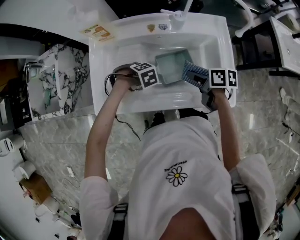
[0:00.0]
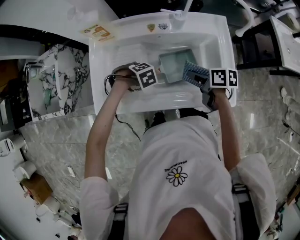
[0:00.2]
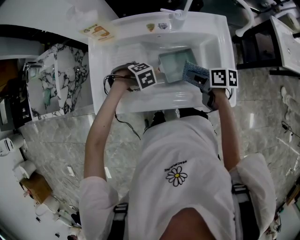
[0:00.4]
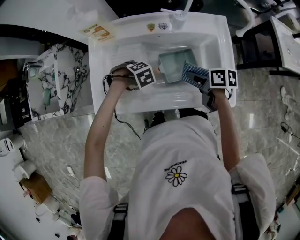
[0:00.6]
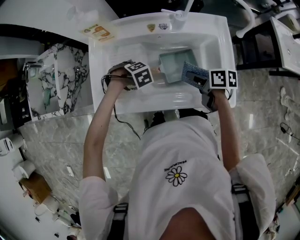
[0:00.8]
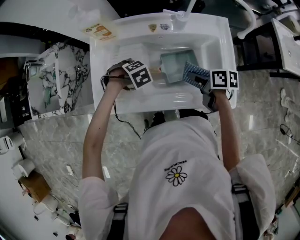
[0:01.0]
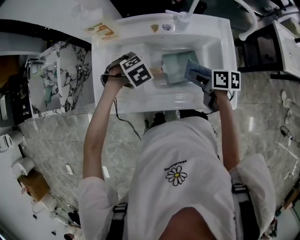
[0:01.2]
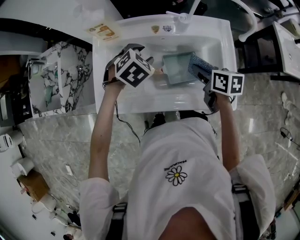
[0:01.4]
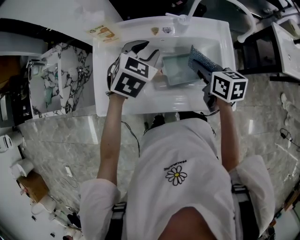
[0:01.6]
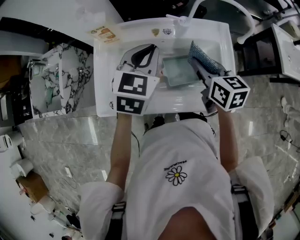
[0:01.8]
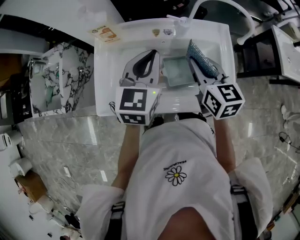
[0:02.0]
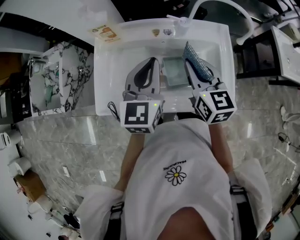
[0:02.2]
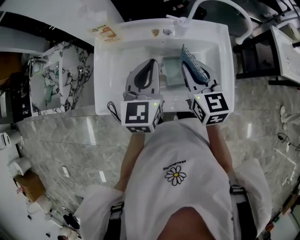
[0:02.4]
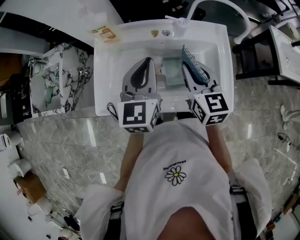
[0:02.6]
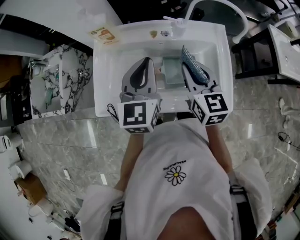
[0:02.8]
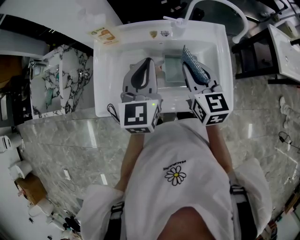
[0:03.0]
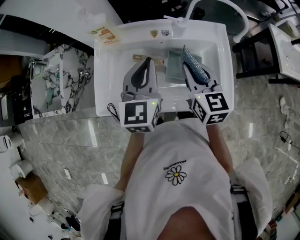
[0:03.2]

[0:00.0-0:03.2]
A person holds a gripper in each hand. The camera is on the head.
0:00.0 to 0:01.6: The right gripper travels upward by about 10 cm, and rotates approximately 30 degrees.
0:01.6 to 0:03.2: The right gripper heads upward, covering approximately 5 cm, and turns by about 30 degrees.

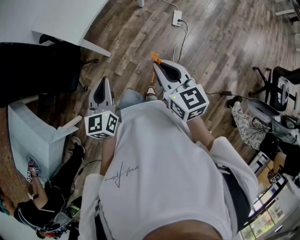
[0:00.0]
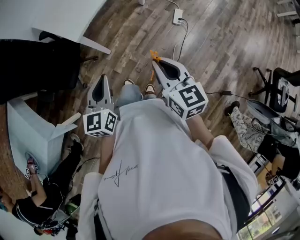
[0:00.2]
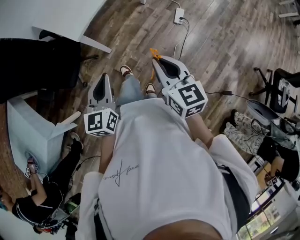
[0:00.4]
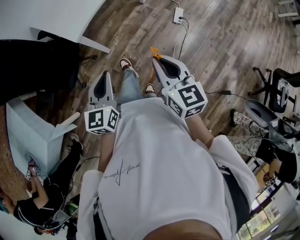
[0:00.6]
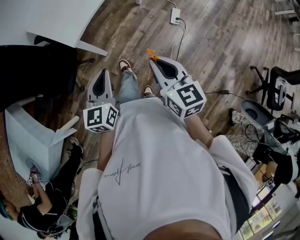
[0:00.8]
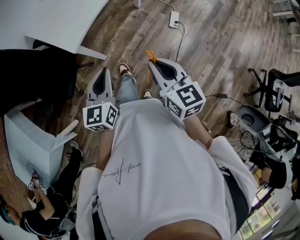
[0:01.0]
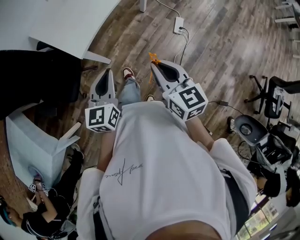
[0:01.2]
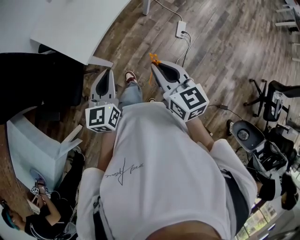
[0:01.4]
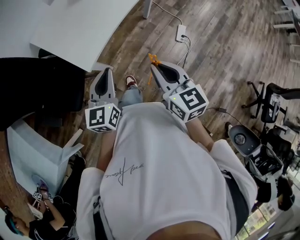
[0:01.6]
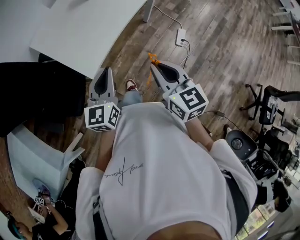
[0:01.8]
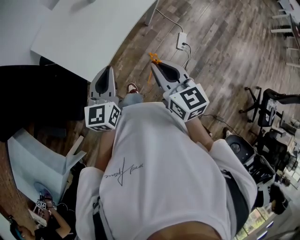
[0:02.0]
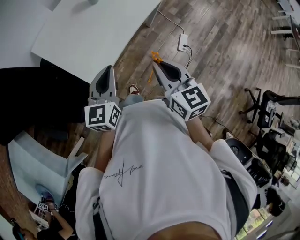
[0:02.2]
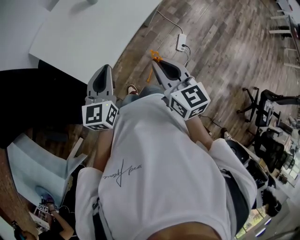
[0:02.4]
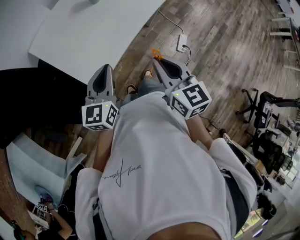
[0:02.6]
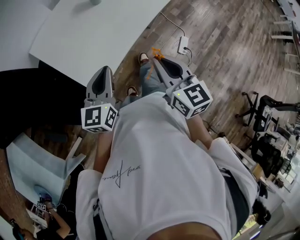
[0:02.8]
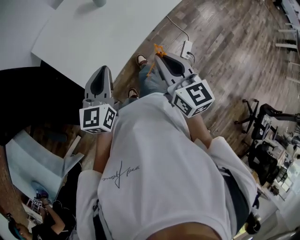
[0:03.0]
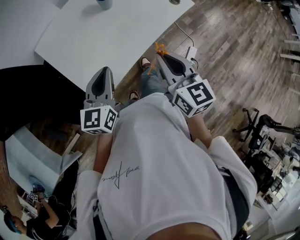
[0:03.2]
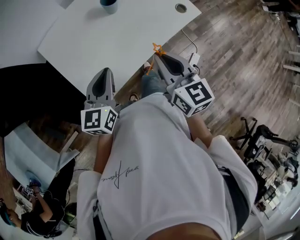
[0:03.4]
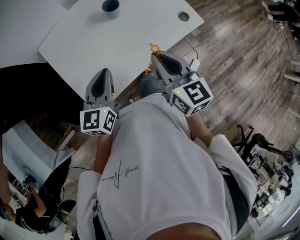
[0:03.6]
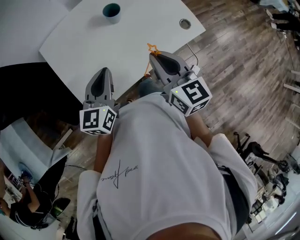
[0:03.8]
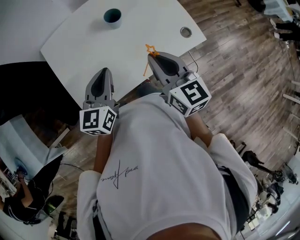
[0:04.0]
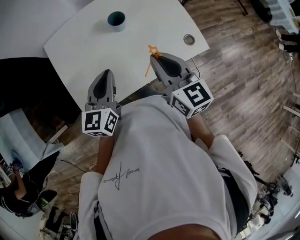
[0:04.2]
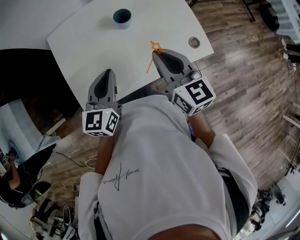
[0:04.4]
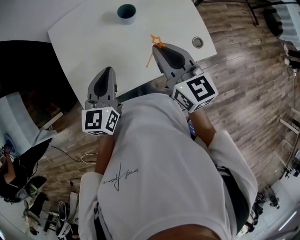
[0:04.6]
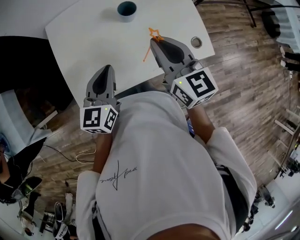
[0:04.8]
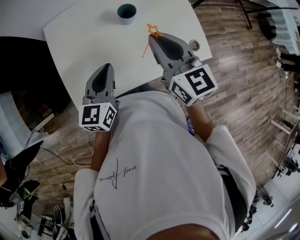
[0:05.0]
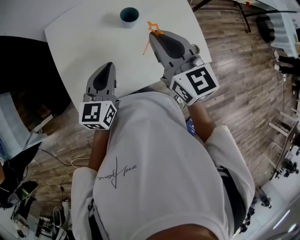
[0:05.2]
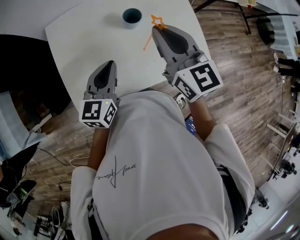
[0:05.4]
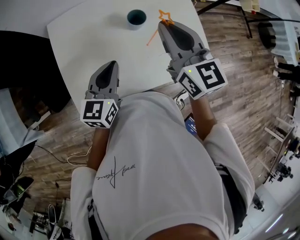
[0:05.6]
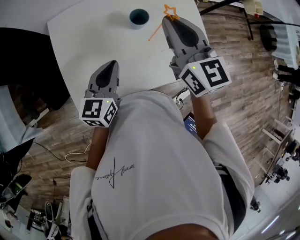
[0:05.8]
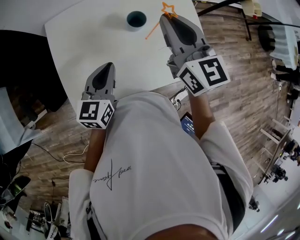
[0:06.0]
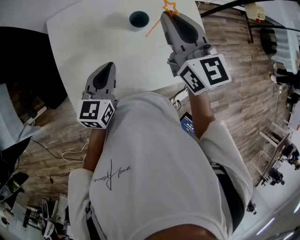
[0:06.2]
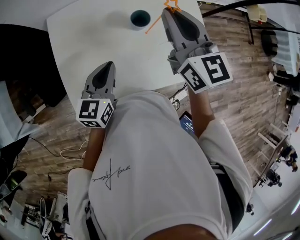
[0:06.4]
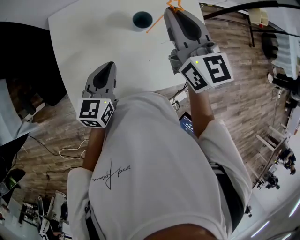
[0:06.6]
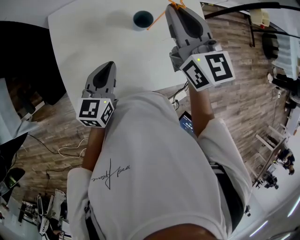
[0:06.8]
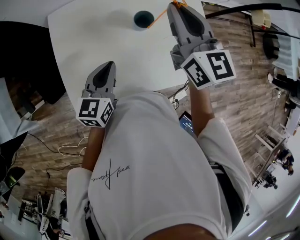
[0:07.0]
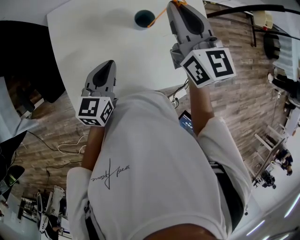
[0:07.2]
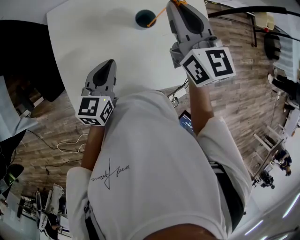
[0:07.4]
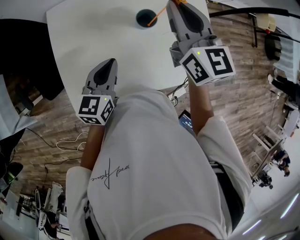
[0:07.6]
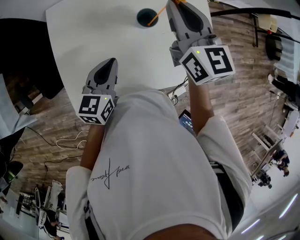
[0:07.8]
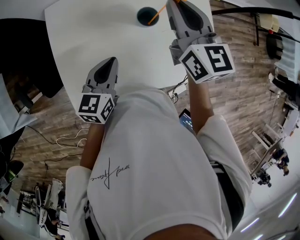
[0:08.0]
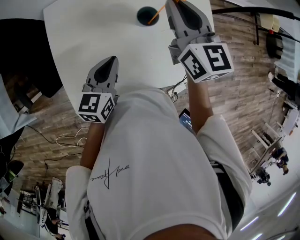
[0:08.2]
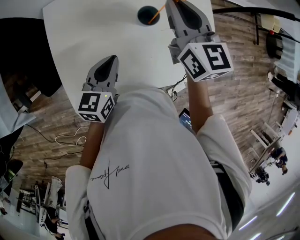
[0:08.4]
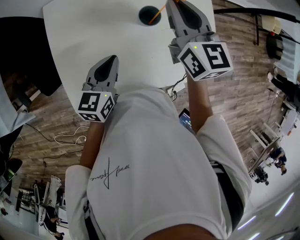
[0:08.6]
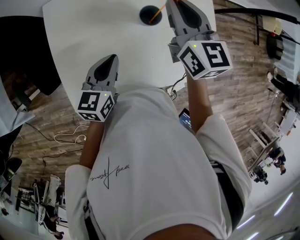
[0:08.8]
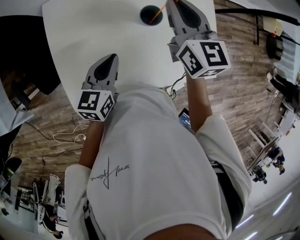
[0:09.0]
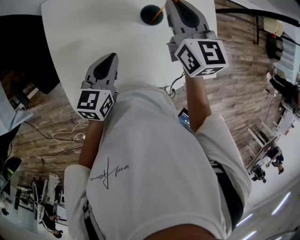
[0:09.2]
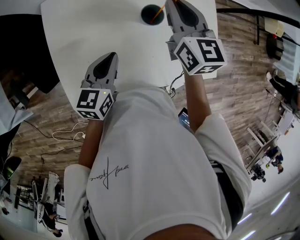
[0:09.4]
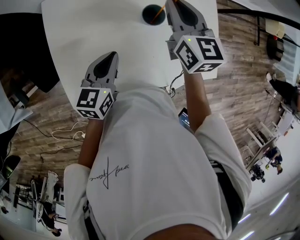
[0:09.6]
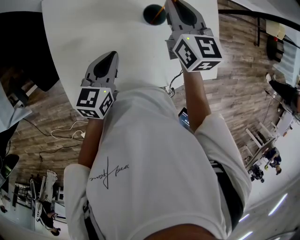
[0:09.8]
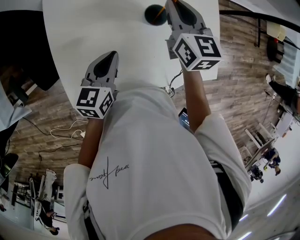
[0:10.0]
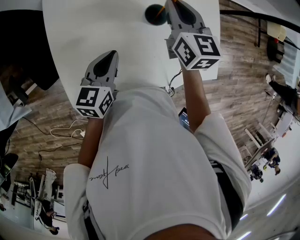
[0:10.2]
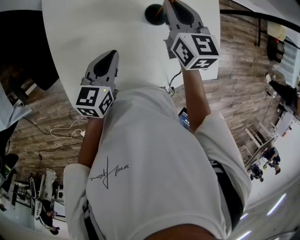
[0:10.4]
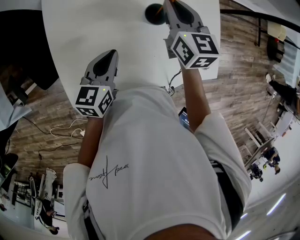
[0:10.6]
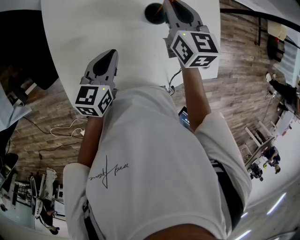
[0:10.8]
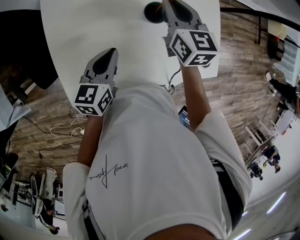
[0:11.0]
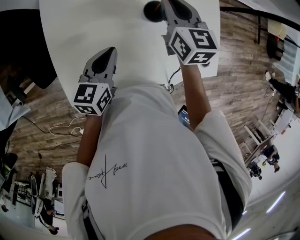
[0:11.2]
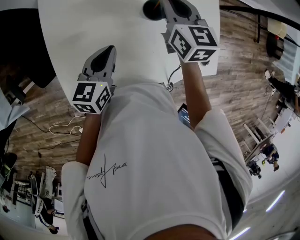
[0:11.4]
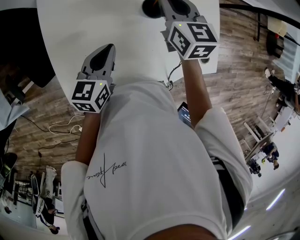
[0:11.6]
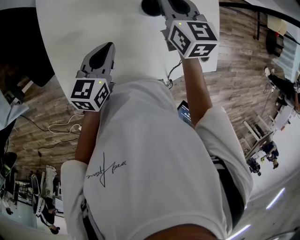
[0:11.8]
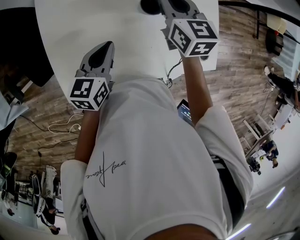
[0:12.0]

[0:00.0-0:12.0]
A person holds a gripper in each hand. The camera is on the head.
0:00.0 to 0:01.6: The grippers both shift forward by some 25 cm.
0:01.6 to 0:03.0: The two grippers go about 20 cm forward.
0:03.0 to 0:04.4: The right gripper changes place by some 25 cm, and turns by roughly 30 degrees. The left gripper changes place by about 15 cm, and rotates about 20 degrees.
0:04.4 to 0:06.0: The right gripper moves forward and upward, approximately 15 cm. Meanwhile the left gripper heads forward, covering some 5 cm.
0:06.0 to 0:07.6: The right gripper moves forward, approximately 5 cm.
0:07.6 to 0:09.0: The right gripper shifts about 5 cm downward.
0:09.0 to 0:10.4: The right gripper heads downward, covering some 5 cm.
0:10.4 to 0:12.0: There are only small adjustments of the grippers.

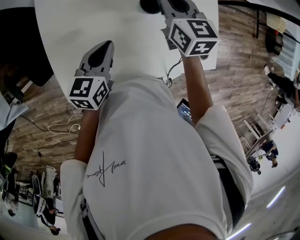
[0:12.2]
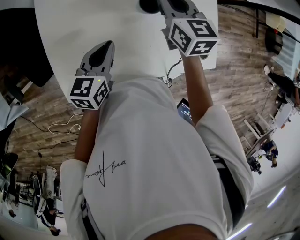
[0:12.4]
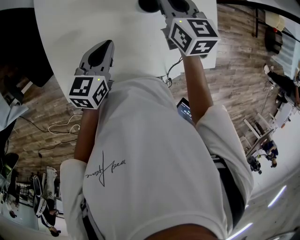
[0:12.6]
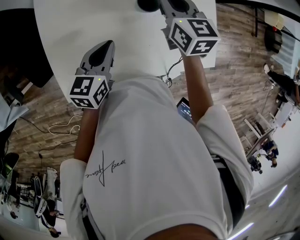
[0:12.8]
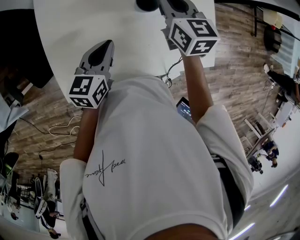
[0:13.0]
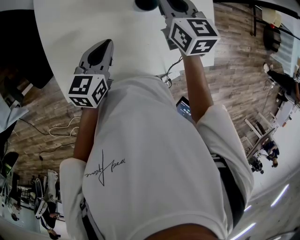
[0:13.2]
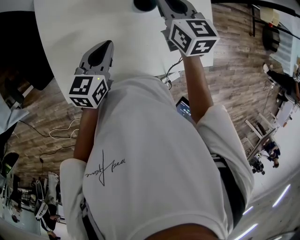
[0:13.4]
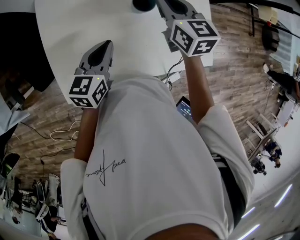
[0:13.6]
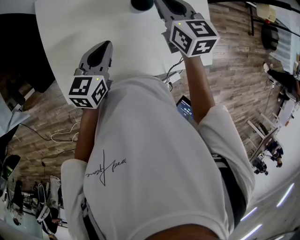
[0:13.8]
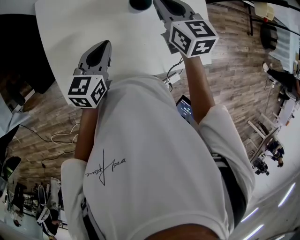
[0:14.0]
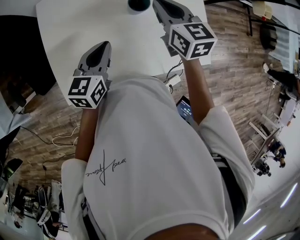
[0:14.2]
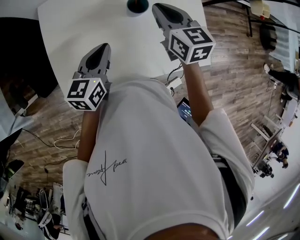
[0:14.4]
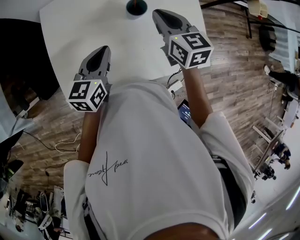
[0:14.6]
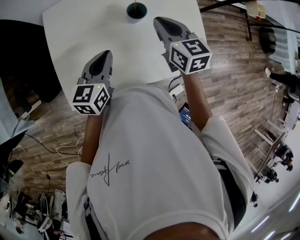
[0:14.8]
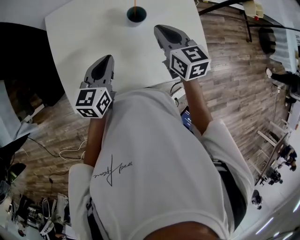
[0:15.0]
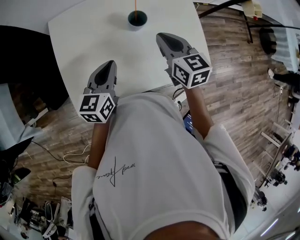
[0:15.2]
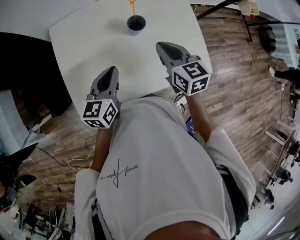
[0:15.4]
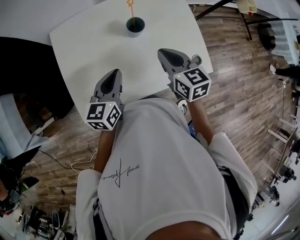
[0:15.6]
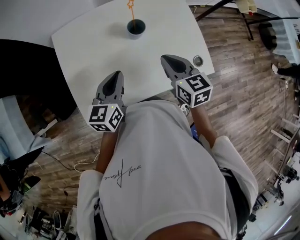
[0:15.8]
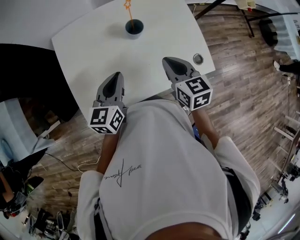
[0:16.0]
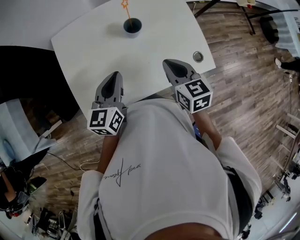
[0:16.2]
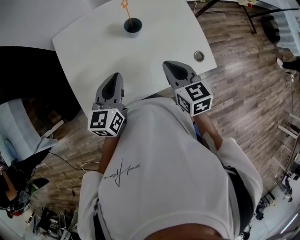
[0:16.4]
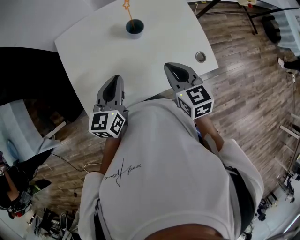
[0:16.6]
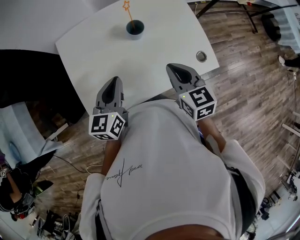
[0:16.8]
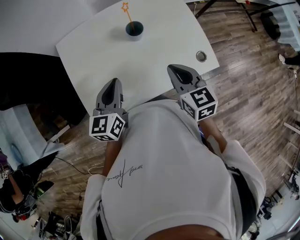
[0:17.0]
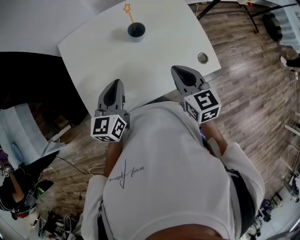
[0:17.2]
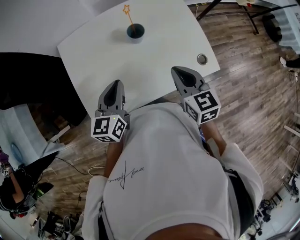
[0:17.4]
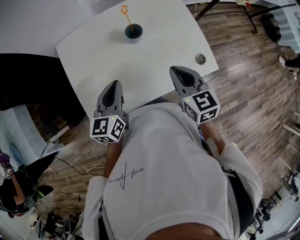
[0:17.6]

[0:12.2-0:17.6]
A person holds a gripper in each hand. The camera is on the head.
0:12.2 to 0:13.6: The grippers stay close to where they were, moving slightly.
0:13.6 to 0:15.0: The right gripper heads backward, covering some 10 cm.
0:15.0 to 0:16.2: The right gripper goes about 10 cm backward.
0:16.2 to 0:17.6: The grippers move only a little.

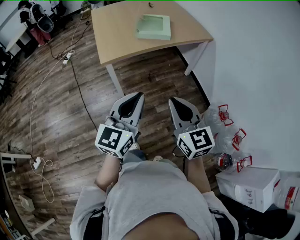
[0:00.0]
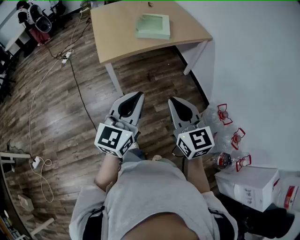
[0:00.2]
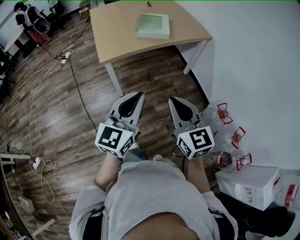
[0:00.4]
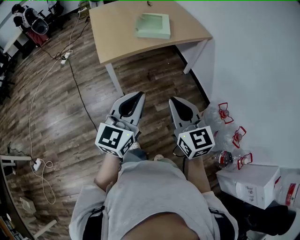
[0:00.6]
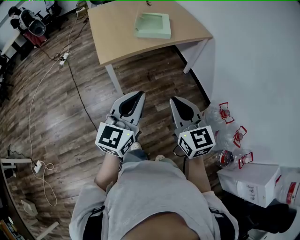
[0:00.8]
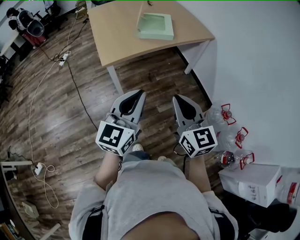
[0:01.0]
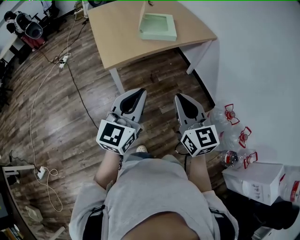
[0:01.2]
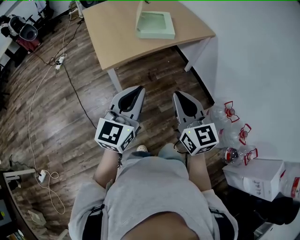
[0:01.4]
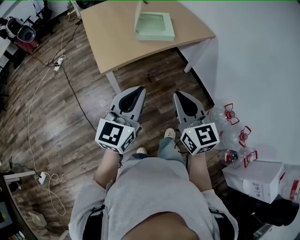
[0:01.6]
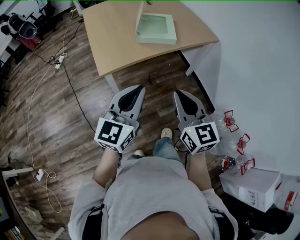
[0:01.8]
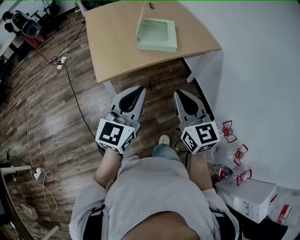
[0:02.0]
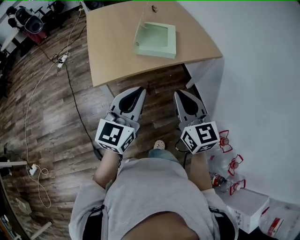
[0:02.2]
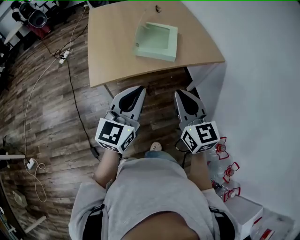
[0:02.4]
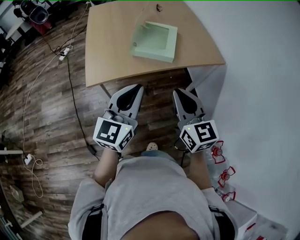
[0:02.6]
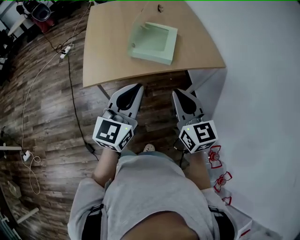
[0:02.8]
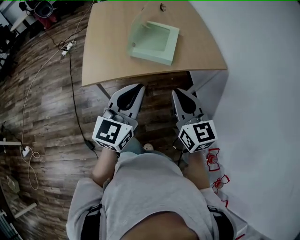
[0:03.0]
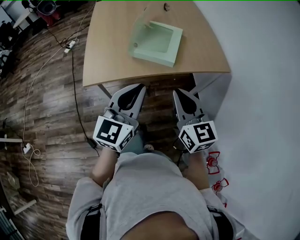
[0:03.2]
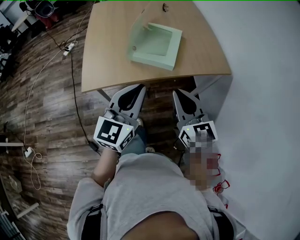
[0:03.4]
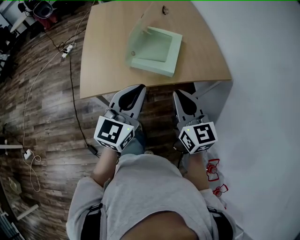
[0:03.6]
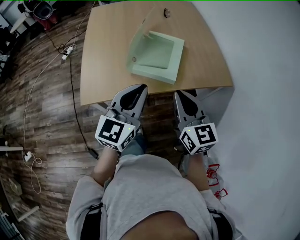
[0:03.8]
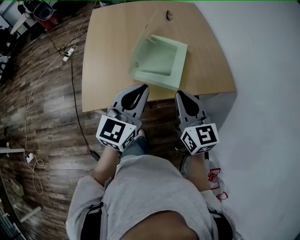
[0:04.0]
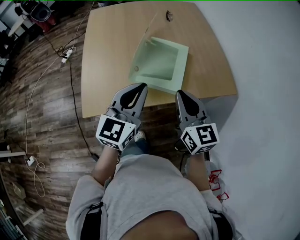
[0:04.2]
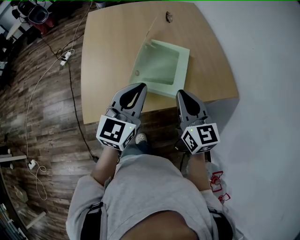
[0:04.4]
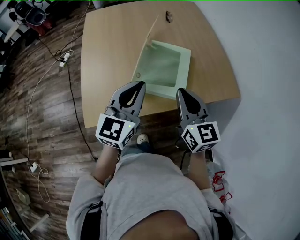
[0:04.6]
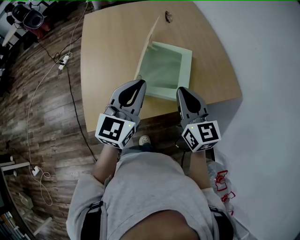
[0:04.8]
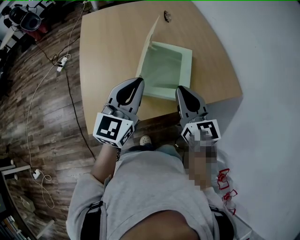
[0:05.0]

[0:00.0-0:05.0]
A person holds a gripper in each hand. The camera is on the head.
0:00.0 to 0:01.6: Both grippers move forward and to the left, roughly 15 cm.
0:01.6 to 0:03.4: The two grippers go approximately 30 cm forward and to the right.
0:03.4 to 0:05.0: The two grippers go roughly 25 cm forward.
